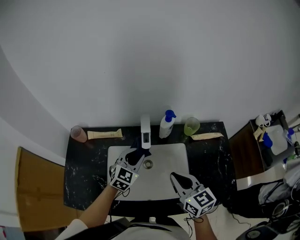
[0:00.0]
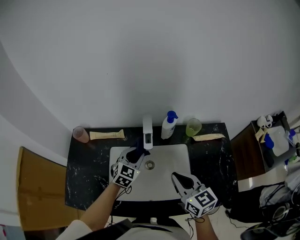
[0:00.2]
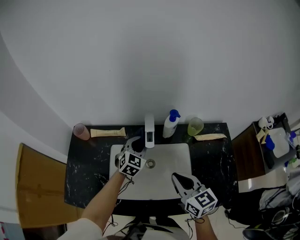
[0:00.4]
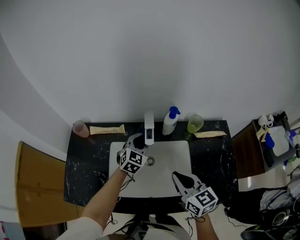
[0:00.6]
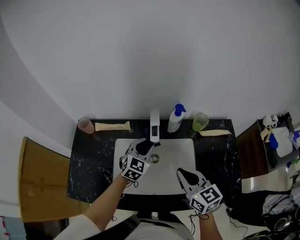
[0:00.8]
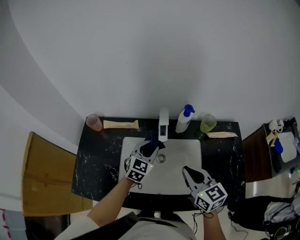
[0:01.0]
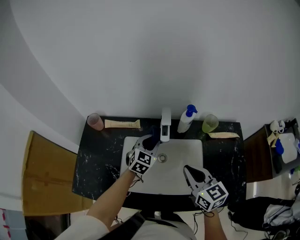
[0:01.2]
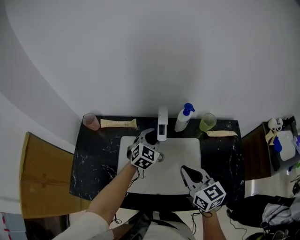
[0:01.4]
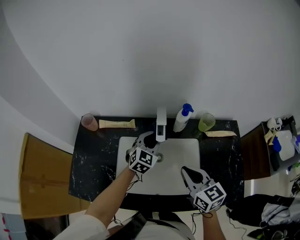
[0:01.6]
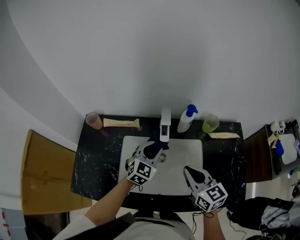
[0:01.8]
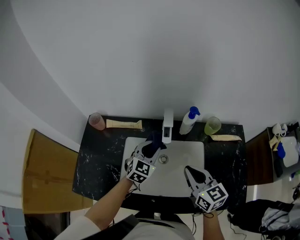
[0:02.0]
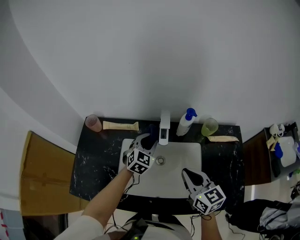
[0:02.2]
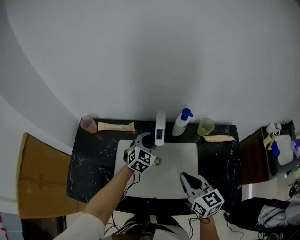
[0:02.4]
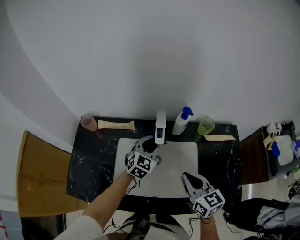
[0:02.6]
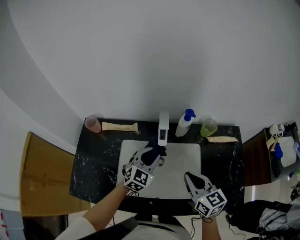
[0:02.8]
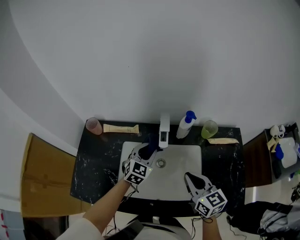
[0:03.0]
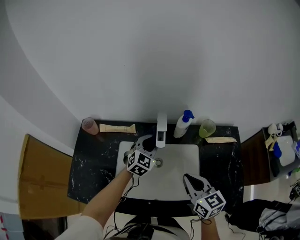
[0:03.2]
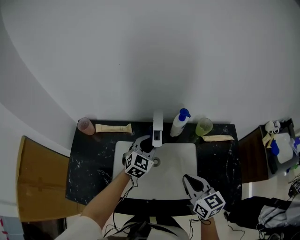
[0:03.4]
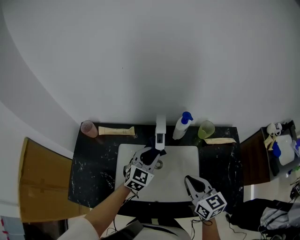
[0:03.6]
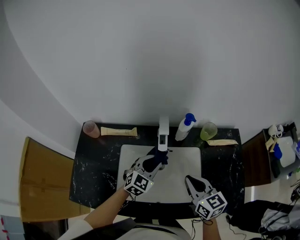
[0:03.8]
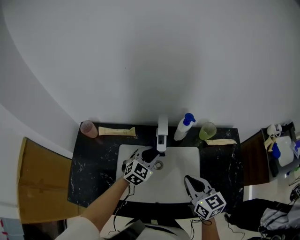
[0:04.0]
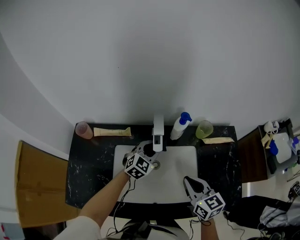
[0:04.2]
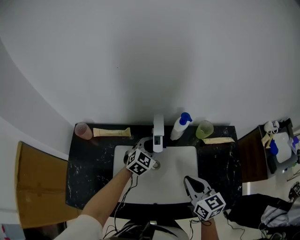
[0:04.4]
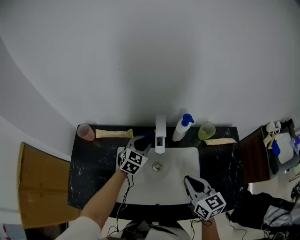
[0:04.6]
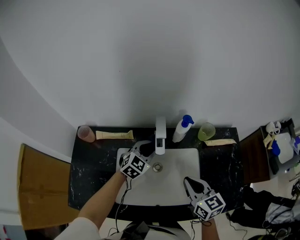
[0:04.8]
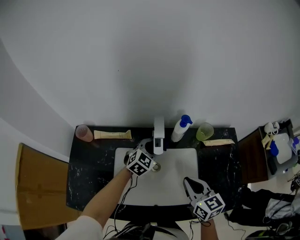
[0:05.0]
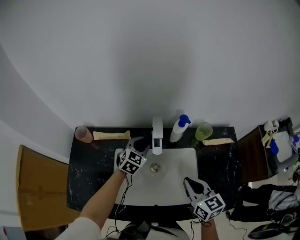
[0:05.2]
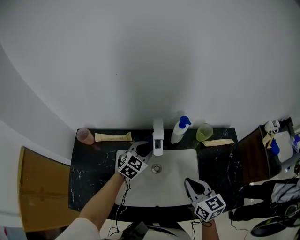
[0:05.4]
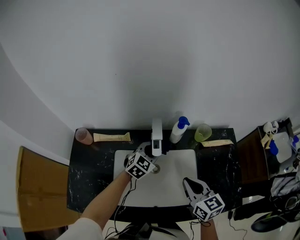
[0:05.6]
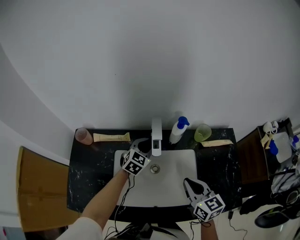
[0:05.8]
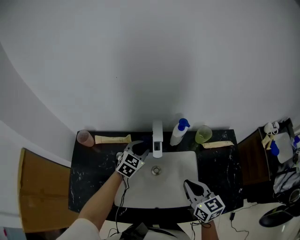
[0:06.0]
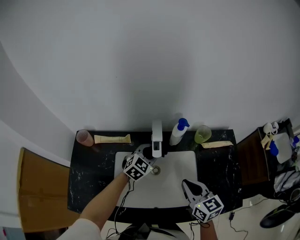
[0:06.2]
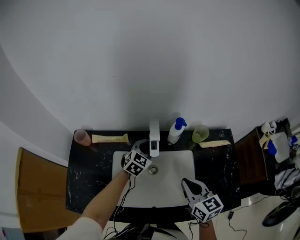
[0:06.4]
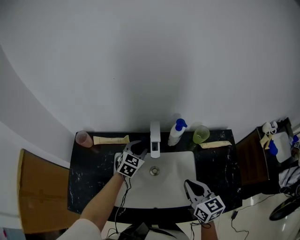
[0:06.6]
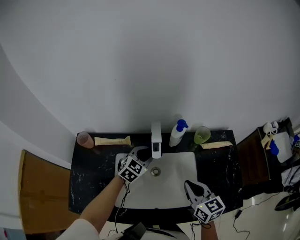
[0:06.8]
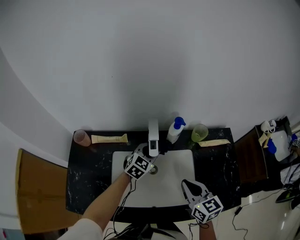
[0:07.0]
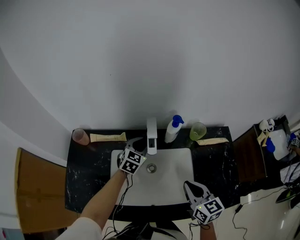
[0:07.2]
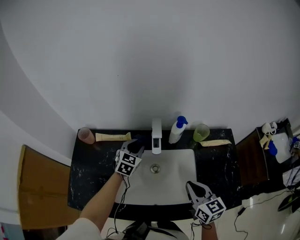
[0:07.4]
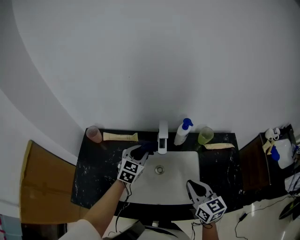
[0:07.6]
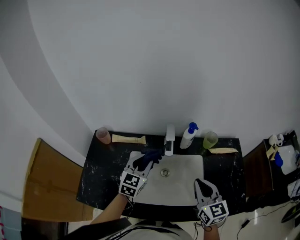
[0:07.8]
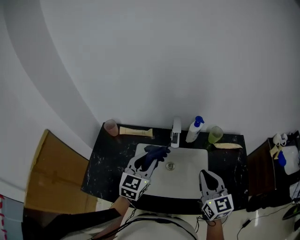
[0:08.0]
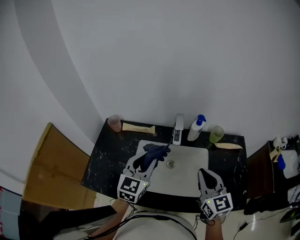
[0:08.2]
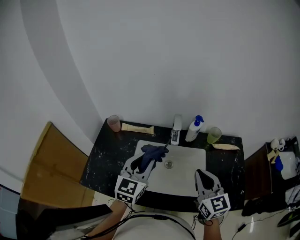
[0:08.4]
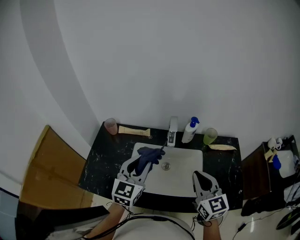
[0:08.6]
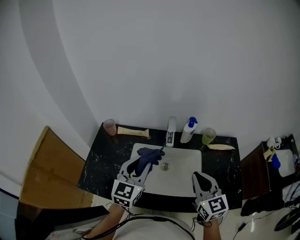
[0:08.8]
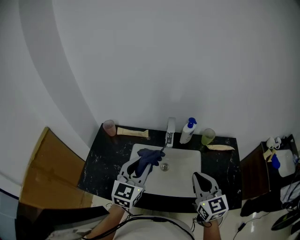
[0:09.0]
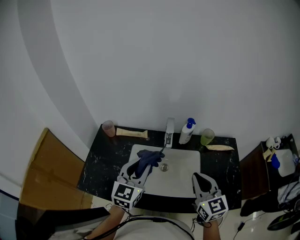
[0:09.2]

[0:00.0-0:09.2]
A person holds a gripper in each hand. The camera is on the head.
0:00.0 to 0:01.6: The left gripper moves forward and backward over some 5 cm, changing direction 2 times.
0:01.6 to 0:03.0: The left gripper goes forward and backward, approximately 10 cm each way, reversing 2 times.
0:03.0 to 0:04.6: The left gripper moves forward and backward over roughly 10 cm, changing direction 2 times.
0:04.6 to 0:06.2: The left gripper swings left and right, about 5 cm each way, with 4 reversals.
0:06.2 to 0:07.6: The left gripper moves left and right over approximately 10 cm, changing direction 2 times, and changes its angle by some 20 degrees.
0:07.6 to 0:09.2: The left gripper goes approximately 25 cm backward and upward, and rotates about 20 degrees, while the right gripper travels upward by roughly 10 cm.

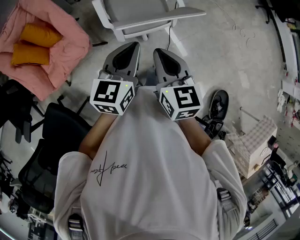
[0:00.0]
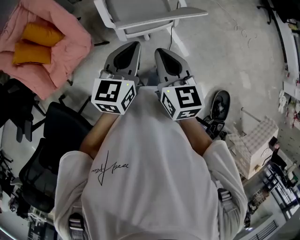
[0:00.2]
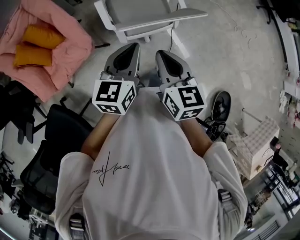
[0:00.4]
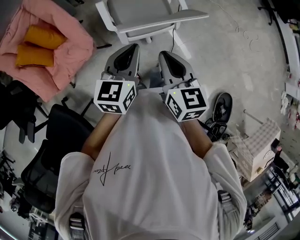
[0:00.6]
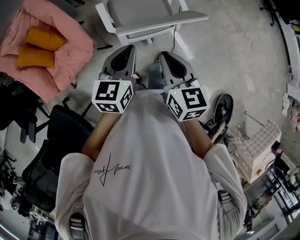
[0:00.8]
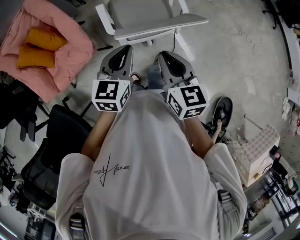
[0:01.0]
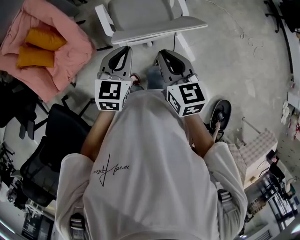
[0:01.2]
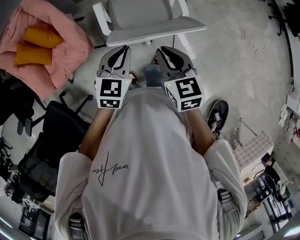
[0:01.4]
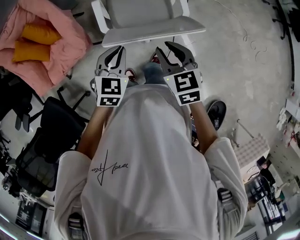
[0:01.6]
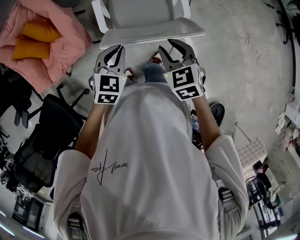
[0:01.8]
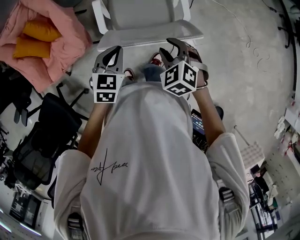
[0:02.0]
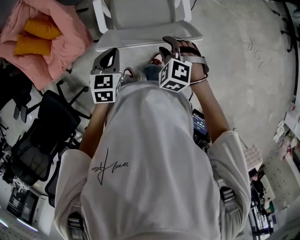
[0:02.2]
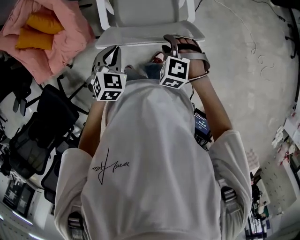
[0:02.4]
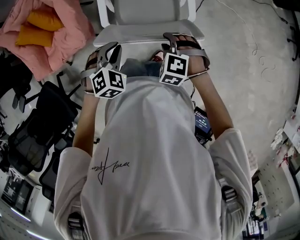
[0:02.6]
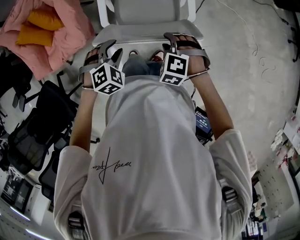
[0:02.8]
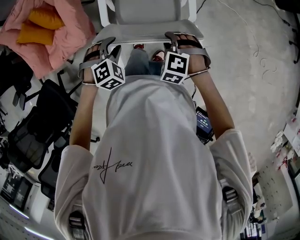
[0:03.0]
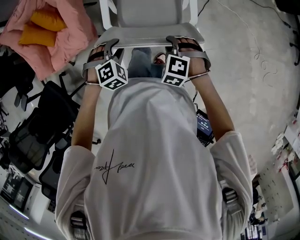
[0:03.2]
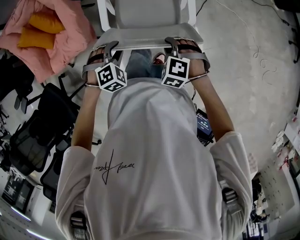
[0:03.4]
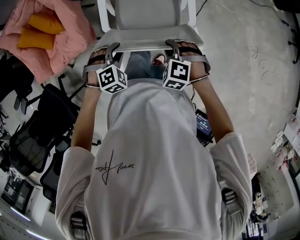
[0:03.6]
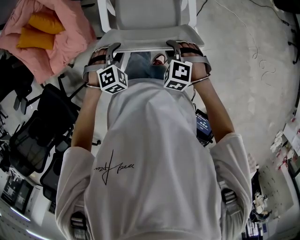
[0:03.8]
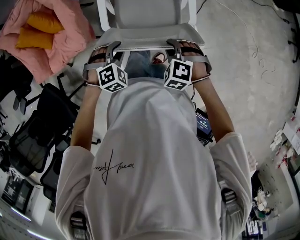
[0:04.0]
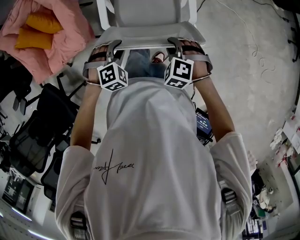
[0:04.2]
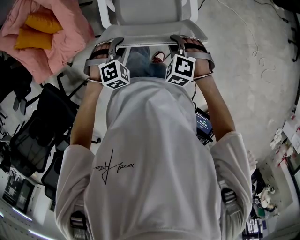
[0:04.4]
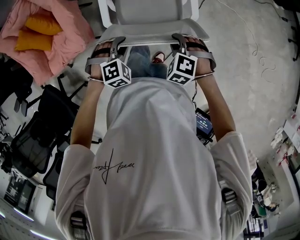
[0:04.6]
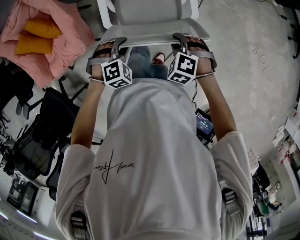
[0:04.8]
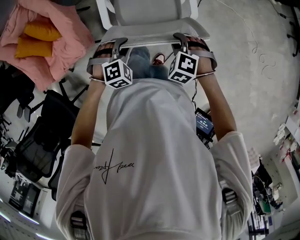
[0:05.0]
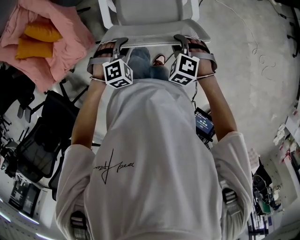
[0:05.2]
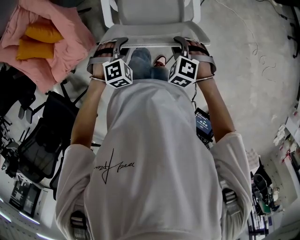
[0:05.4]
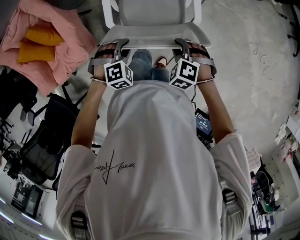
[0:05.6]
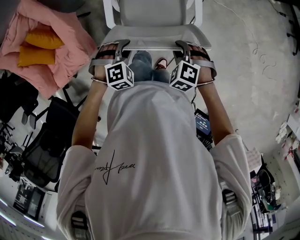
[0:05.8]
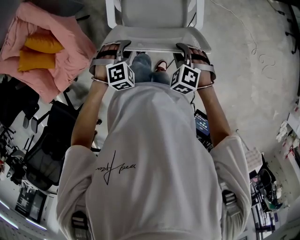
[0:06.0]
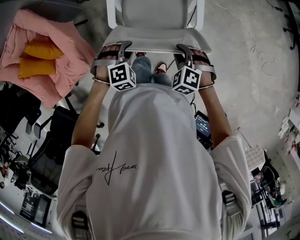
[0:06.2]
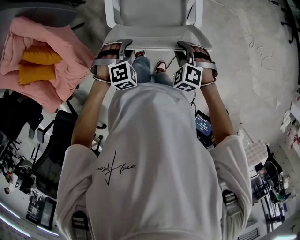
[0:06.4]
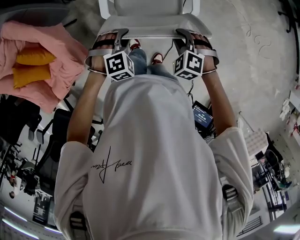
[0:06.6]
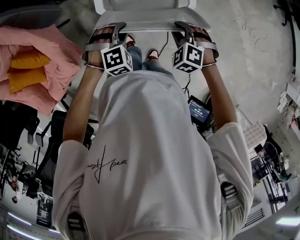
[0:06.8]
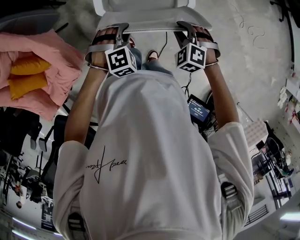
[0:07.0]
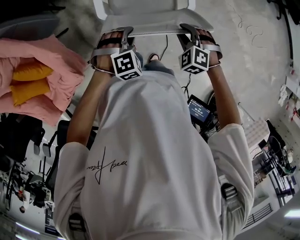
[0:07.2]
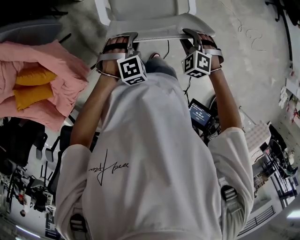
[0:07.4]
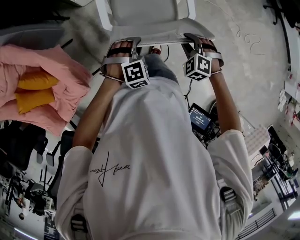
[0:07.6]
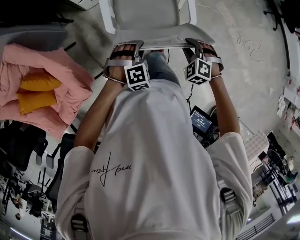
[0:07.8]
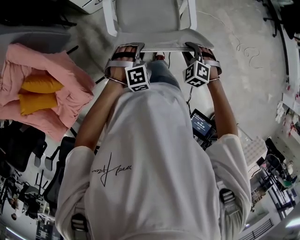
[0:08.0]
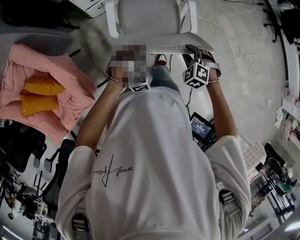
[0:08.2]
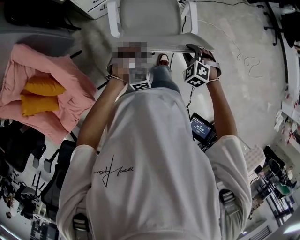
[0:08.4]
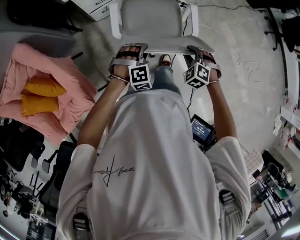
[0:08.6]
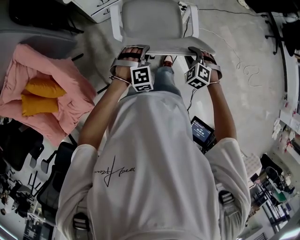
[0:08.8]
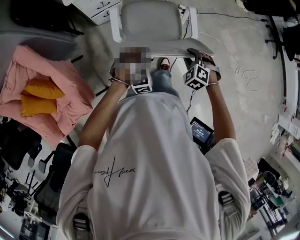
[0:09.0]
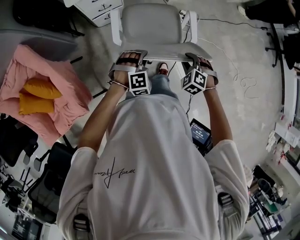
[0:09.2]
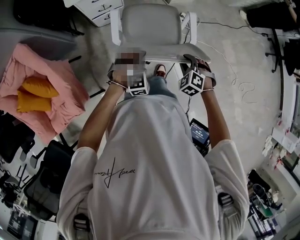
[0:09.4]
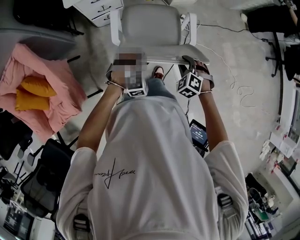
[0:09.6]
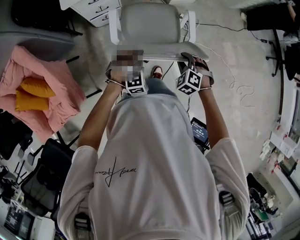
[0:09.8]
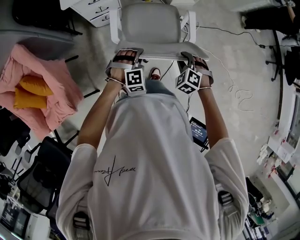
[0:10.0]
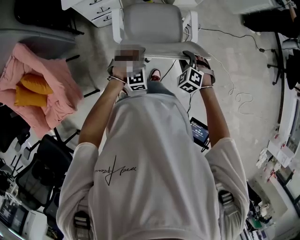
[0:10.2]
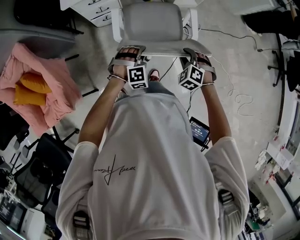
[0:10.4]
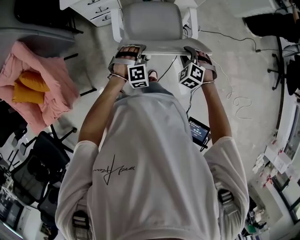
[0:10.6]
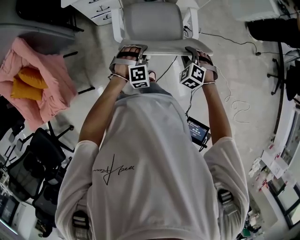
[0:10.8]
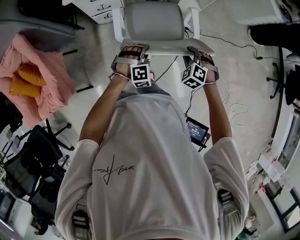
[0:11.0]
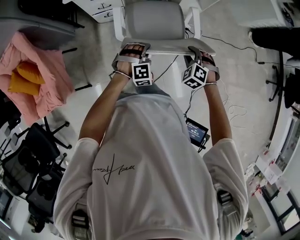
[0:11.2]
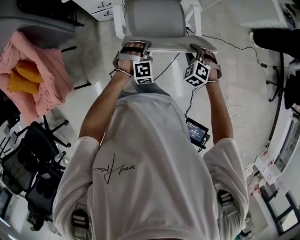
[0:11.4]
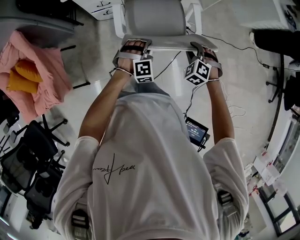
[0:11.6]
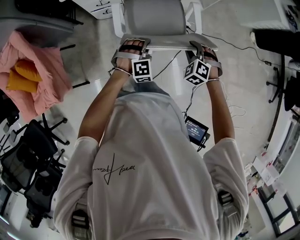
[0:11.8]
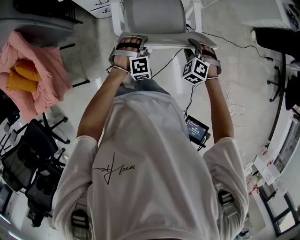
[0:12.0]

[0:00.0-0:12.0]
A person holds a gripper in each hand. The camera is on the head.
0:00.0 to 0:01.6: The right gripper is displaced forward, to the right and downward by approximately 15 cm, rotates approximately 20 degrees, and opens its fingers. Meanwhile the left gripper moves downward and forward, about 15 cm, and changes its angle by some 30 degrees.
0:01.6 to 0:03.0: The right gripper travels downward and to the right by some 15 cm, and twists roughly 60 degrees counterclockwise, seen from behind. Meanwhile the left gripper shifts some 10 cm downward, rotates some 40 degrees, and opens its fingers.
0:03.0 to 0:04.4: There are only small adjustments of the grippers.
0:04.4 to 0:06.0: The two grippers go roughly 5 cm forward.
0:06.0 to 0:07.6: Both grippers travel together forward, some 10 cm.
0:07.6 to 0:09.0: The grippers both shift forward by about 10 cm.
0:09.0 to 0:10.4: The grippers both shift forward and to the right by some 15 cm.
0:10.4 to 0:12.0: The two grippers go approximately 10 cm forward and to the right.

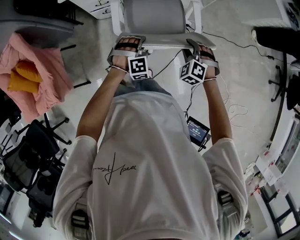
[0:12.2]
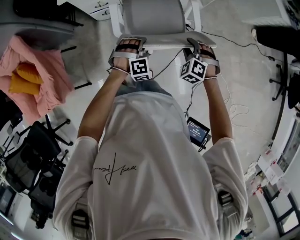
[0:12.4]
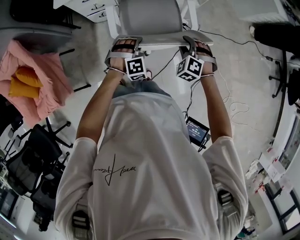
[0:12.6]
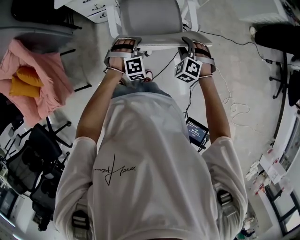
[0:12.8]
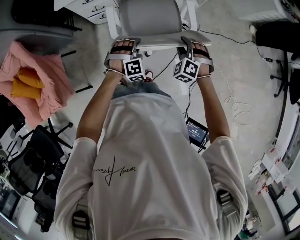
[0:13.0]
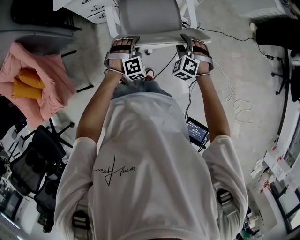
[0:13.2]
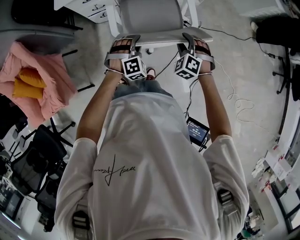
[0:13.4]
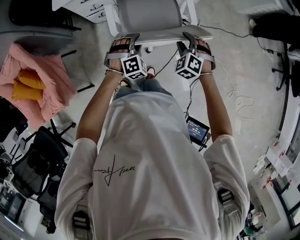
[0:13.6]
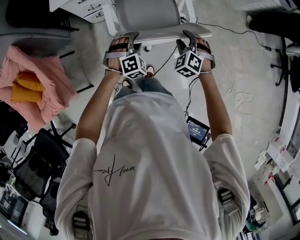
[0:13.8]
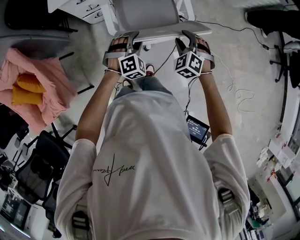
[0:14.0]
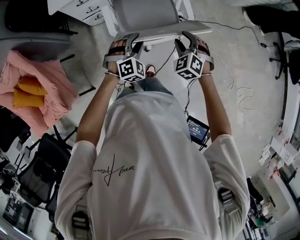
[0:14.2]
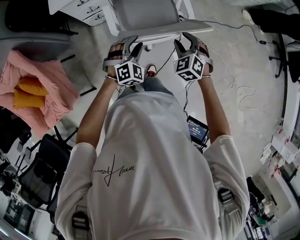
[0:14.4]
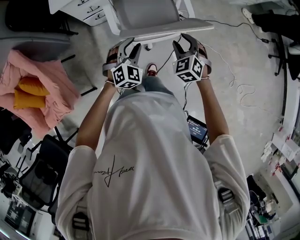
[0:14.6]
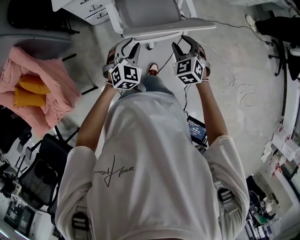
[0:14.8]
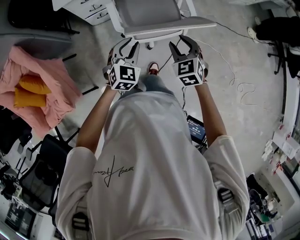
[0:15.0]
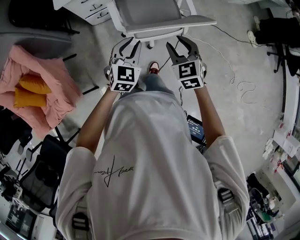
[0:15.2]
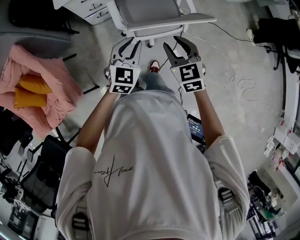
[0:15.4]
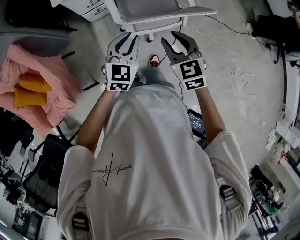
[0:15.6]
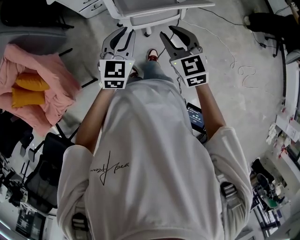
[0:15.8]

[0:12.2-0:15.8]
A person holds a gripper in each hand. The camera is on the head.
0:12.2 to 0:14.0: The left gripper opens up.
0:14.0 to 0:15.8: The right gripper shifts approximately 25 cm backward, upward and to the left, and turns by roughly 40 degrees. The left gripper is displaced upward, backward and to the left by approximately 20 cm, twists approximately 50 degrees counterclockwise, seen from behind, and closes up.
